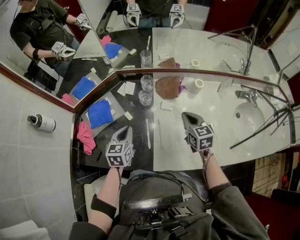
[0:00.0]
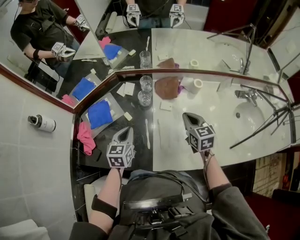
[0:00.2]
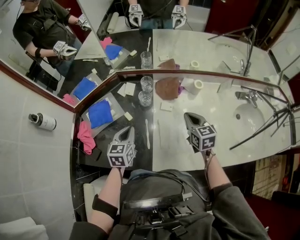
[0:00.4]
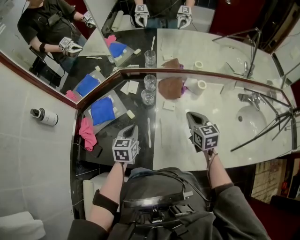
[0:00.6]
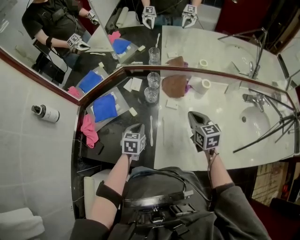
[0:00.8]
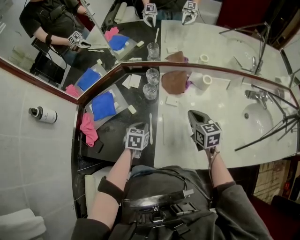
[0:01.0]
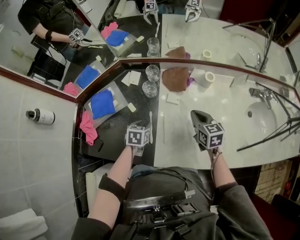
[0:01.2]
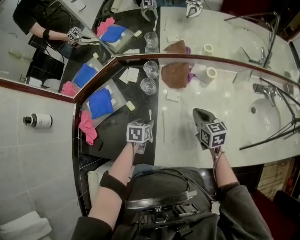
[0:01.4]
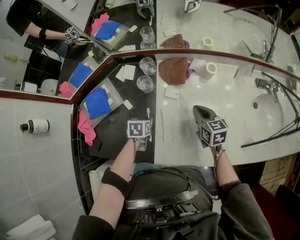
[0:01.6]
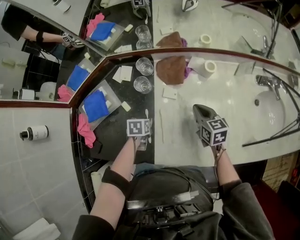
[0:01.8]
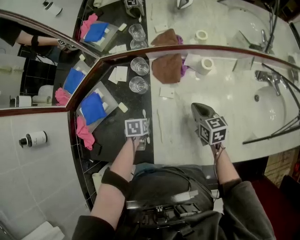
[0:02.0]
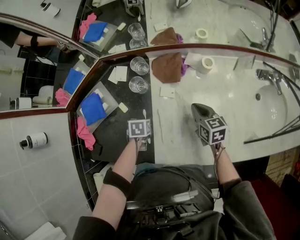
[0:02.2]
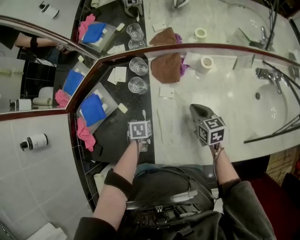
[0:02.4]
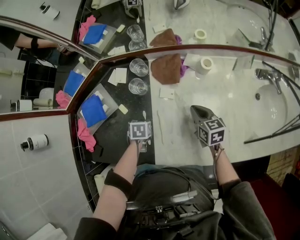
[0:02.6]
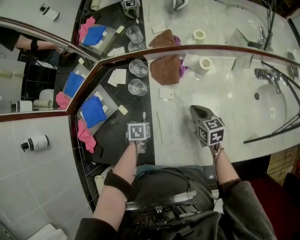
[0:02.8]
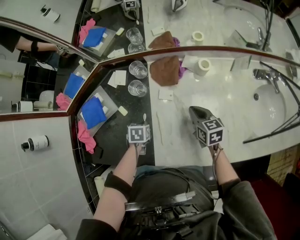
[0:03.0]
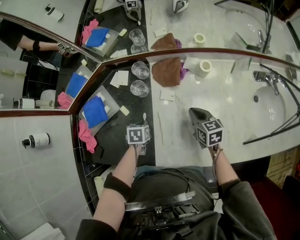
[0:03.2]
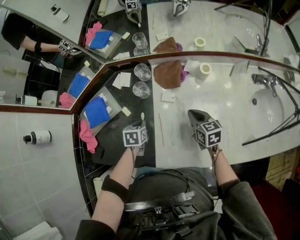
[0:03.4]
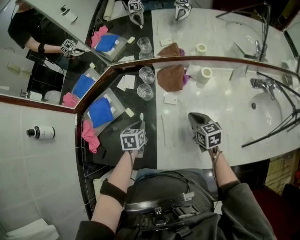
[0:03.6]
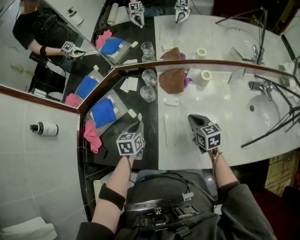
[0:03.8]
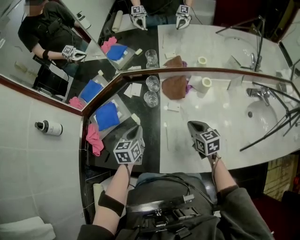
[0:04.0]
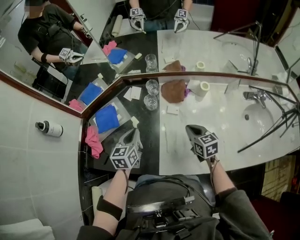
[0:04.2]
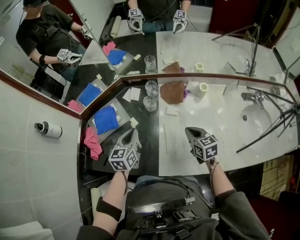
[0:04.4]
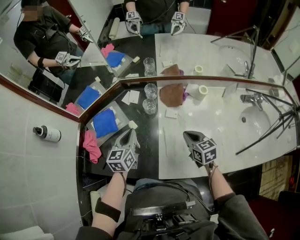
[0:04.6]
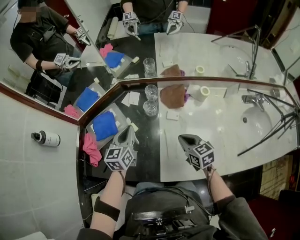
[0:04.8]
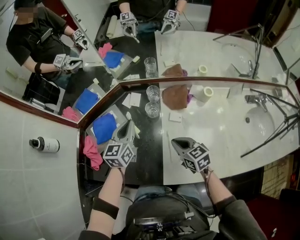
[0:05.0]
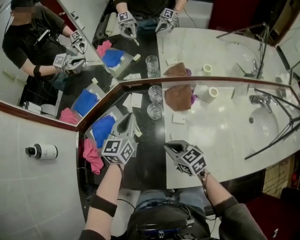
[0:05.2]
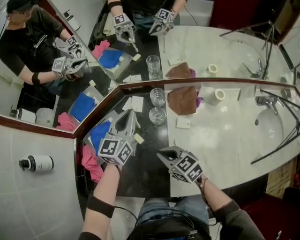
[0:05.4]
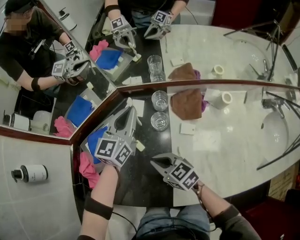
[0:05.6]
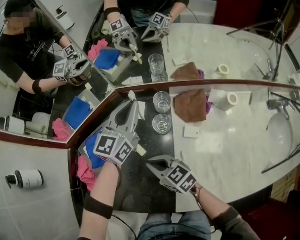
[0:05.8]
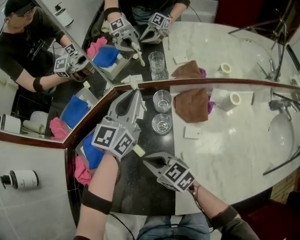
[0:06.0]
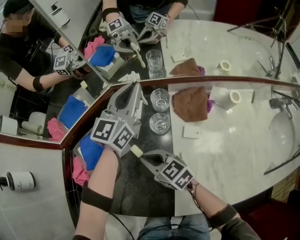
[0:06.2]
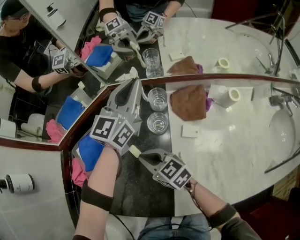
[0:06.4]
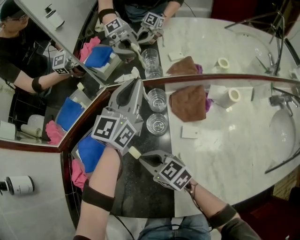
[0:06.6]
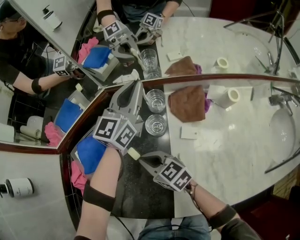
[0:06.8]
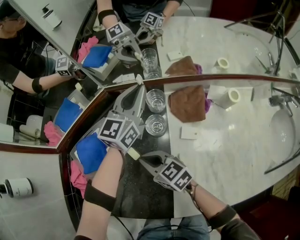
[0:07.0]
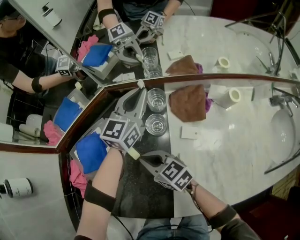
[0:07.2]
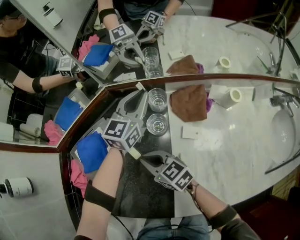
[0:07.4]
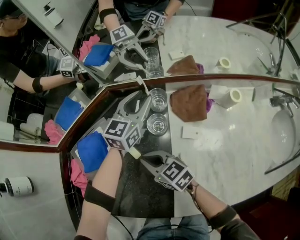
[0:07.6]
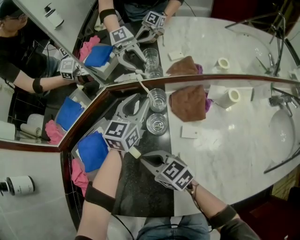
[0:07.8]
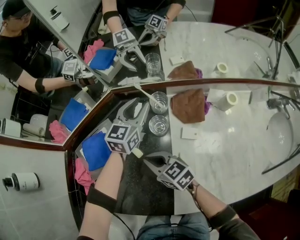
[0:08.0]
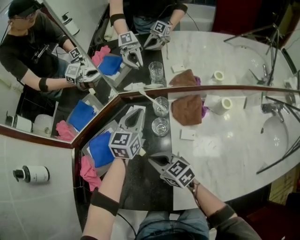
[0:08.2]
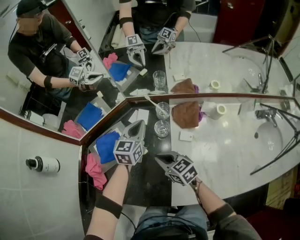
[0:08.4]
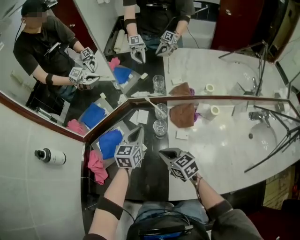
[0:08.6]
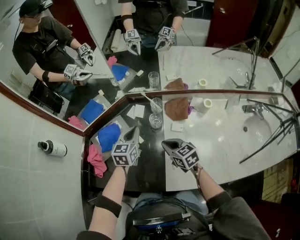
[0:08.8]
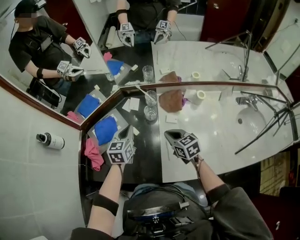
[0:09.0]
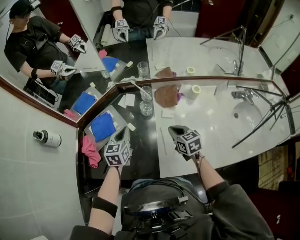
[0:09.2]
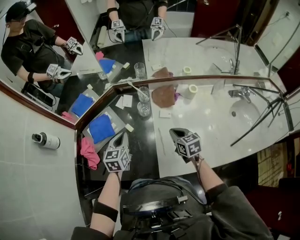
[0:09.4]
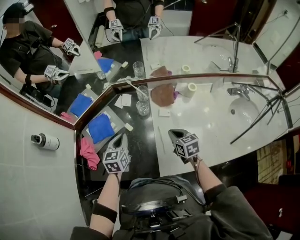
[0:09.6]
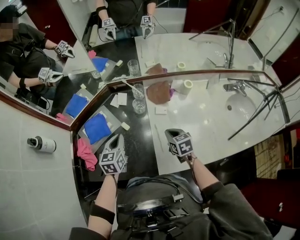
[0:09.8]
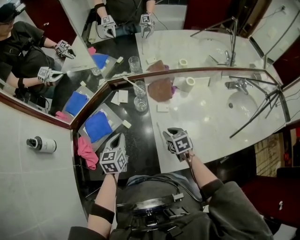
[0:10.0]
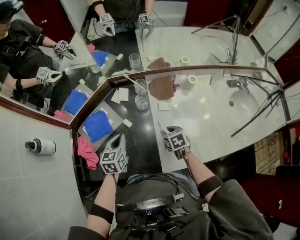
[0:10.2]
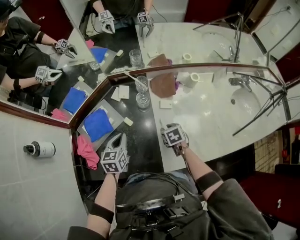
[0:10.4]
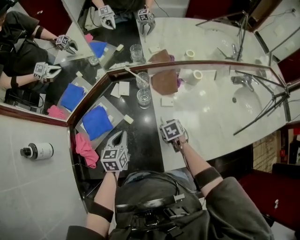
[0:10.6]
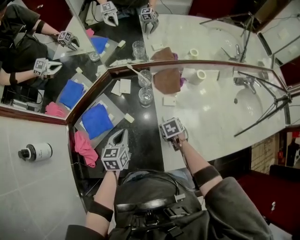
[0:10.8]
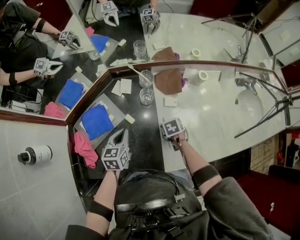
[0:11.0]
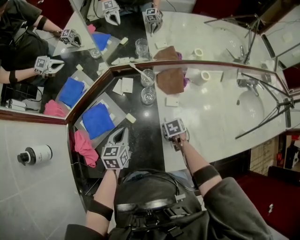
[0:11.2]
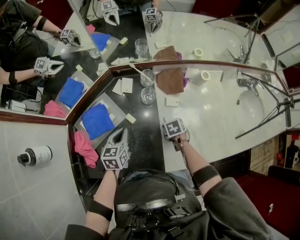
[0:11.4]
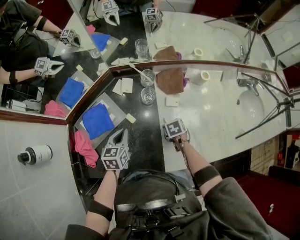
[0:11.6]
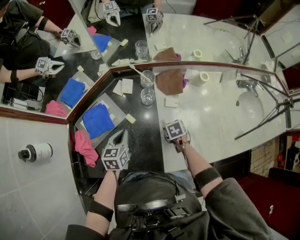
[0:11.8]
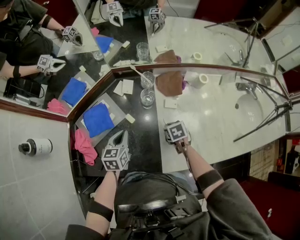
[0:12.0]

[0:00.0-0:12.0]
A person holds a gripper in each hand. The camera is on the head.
0:00.0 to 0:01.6: The left gripper is displaced downward by about 20 cm, points its fingers roughly 40 degrees further downward, and opens. The right gripper shifts roughly 10 cm downward.
0:01.6 to 0:03.0: The left gripper closes up.
0:03.0 to 0:04.4: The left gripper moves upward, some 20 cm, and angles its fingers upward, by roughly 50 degrees. The right gripper changes place by some 10 cm.
0:04.4 to 0:06.0: The left gripper travels forward by roughly 25 cm, and changes its angle by approximately 30 degrees, while the right gripper travels to the left and forward by approximately 30 cm, and rotates about 30 degrees.
0:06.0 to 0:07.6: The left gripper travels downward by about 10 cm, and opens.
0:07.6 to 0:09.0: The right gripper moves to the right, upward and backward, about 20 cm, and rotates roughly 20 degrees, while the left gripper travels backward, to the left and upward by approximately 25 cm, turns by approximately 20 degrees, and closes its fingers.
0:09.0 to 0:10.4: The right gripper goes some 10 cm downward, turns by approximately 30 degrees, and opens its fingers, while the left gripper heads downward and backward, covering some 10 cm.
0:10.4 to 0:12.0: The right gripper closes its fingers.

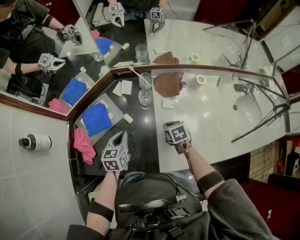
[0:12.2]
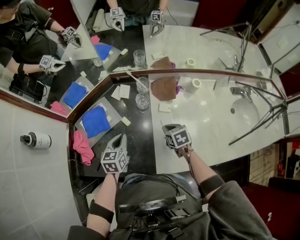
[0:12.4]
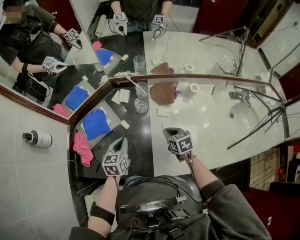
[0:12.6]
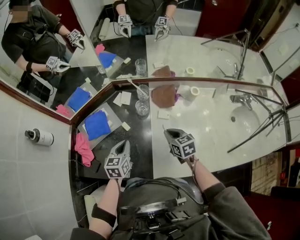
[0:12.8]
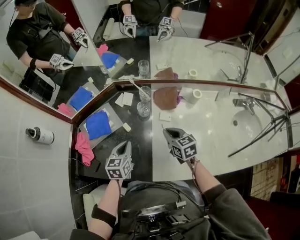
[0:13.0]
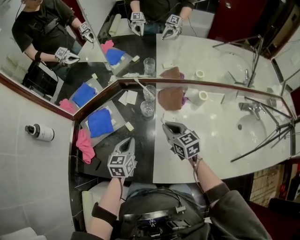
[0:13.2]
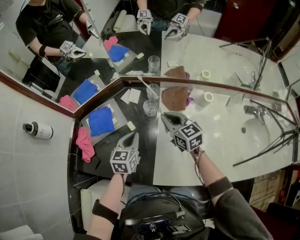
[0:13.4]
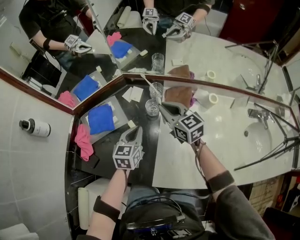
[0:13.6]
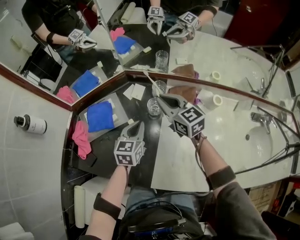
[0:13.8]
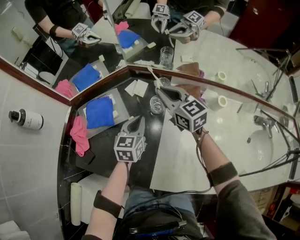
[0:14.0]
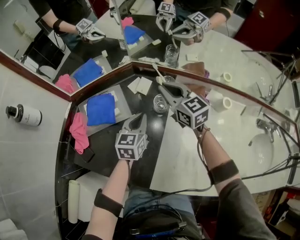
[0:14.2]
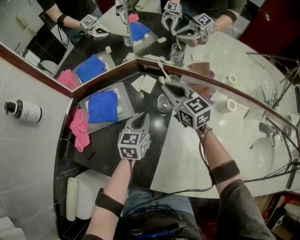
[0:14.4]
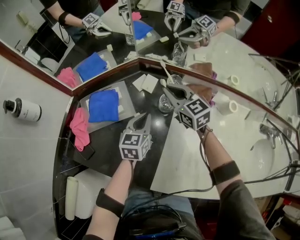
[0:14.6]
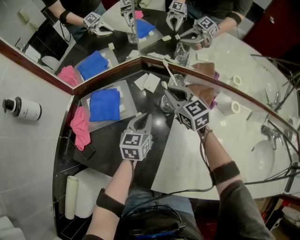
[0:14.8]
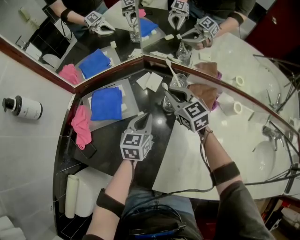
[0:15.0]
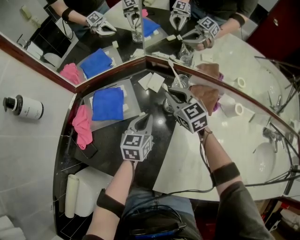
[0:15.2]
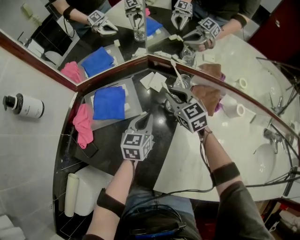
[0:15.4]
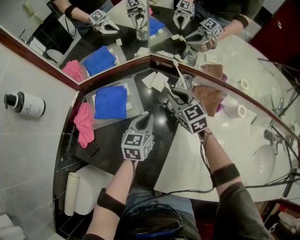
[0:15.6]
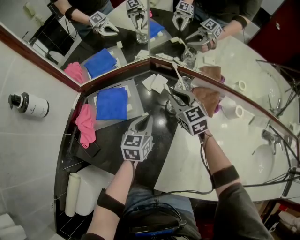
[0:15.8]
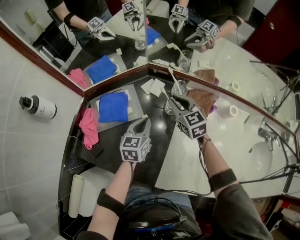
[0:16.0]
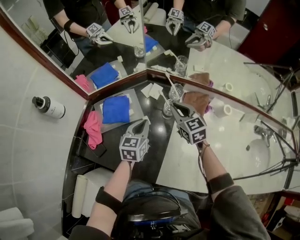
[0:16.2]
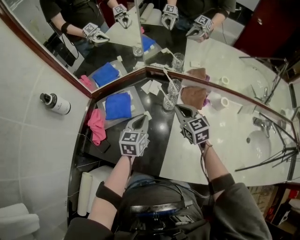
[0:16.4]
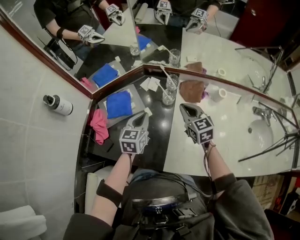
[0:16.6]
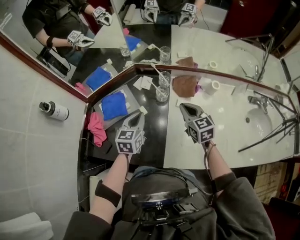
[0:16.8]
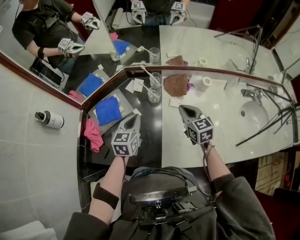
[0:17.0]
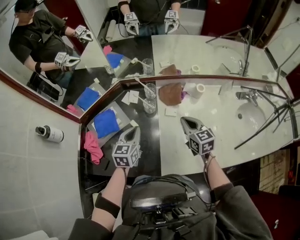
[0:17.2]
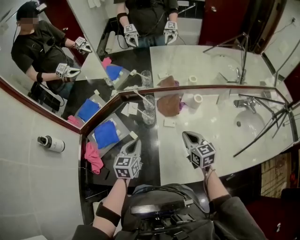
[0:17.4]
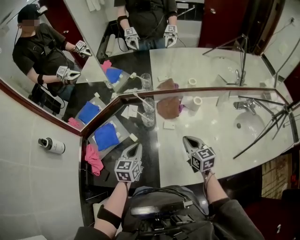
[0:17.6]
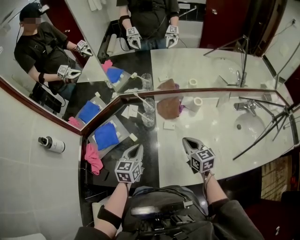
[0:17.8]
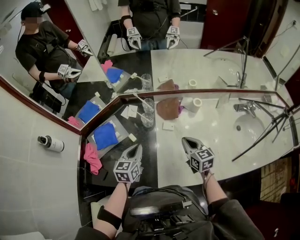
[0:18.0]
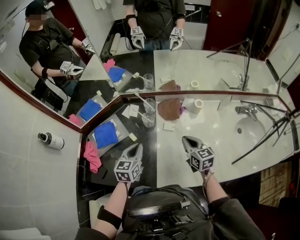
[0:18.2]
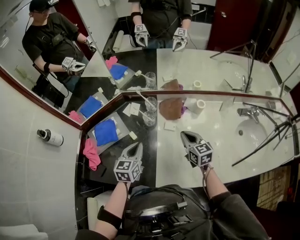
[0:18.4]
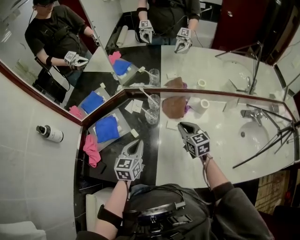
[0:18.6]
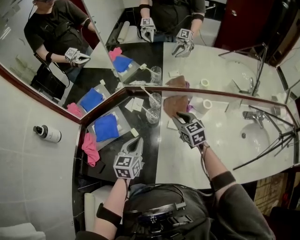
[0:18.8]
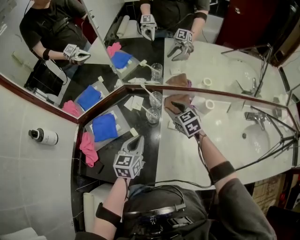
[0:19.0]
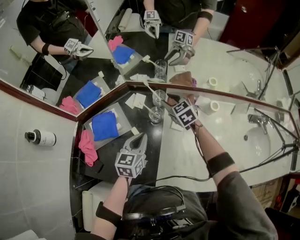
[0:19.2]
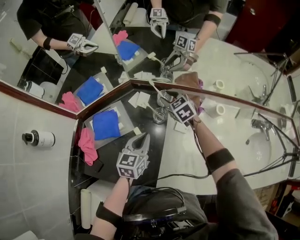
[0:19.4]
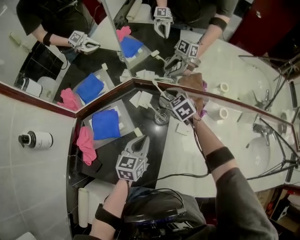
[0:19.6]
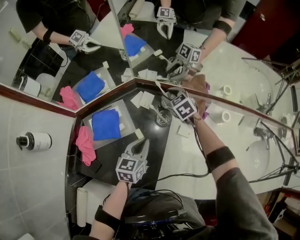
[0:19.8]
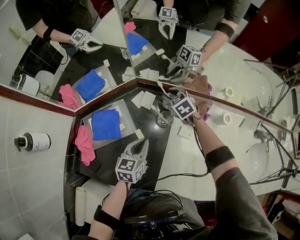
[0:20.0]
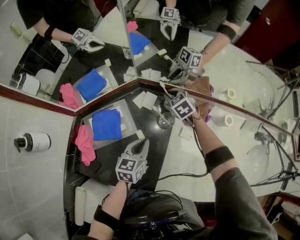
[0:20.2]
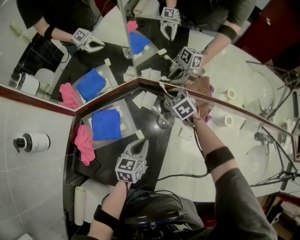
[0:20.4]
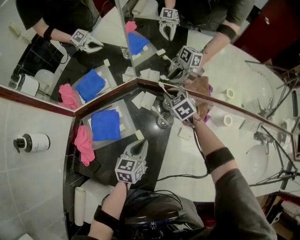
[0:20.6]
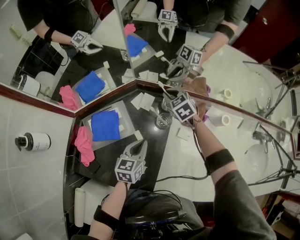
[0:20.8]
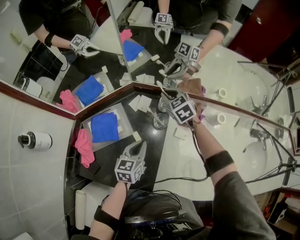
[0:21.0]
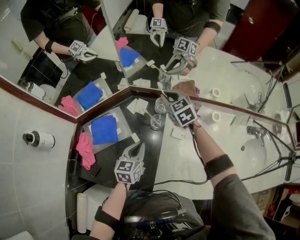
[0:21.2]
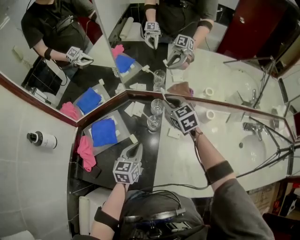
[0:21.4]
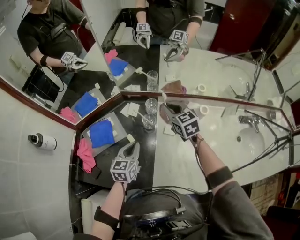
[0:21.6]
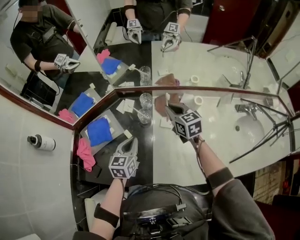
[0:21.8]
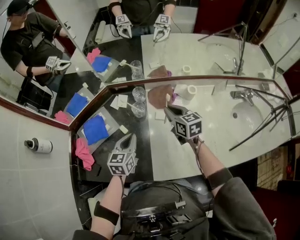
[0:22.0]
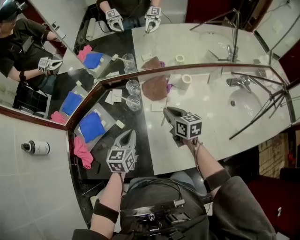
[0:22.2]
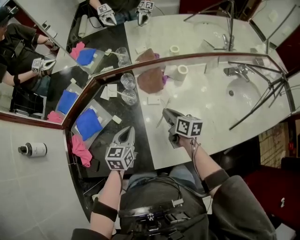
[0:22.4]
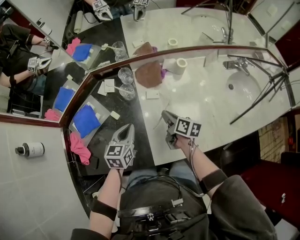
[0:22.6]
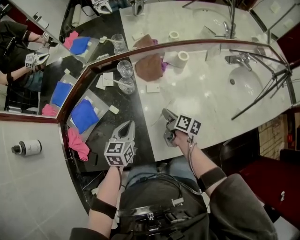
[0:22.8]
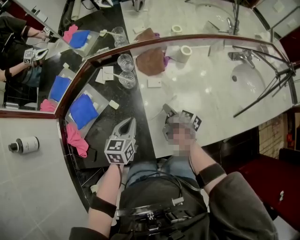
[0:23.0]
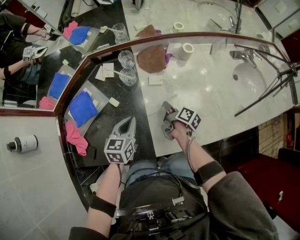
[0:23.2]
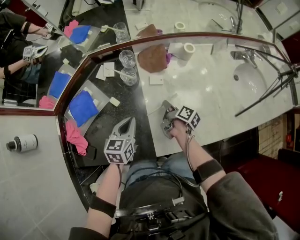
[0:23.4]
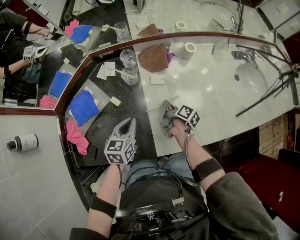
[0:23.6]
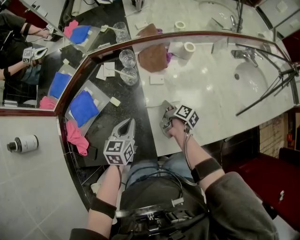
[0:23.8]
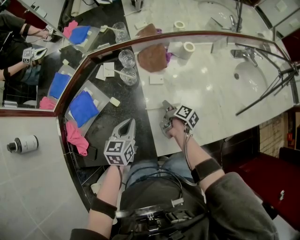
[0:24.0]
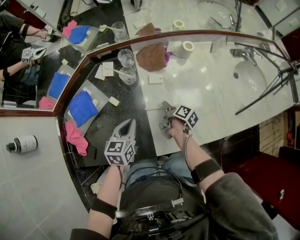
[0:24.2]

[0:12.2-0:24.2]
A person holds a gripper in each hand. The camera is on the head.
0:12.2 to 0:13.8: The right gripper heads upward and forward, covering some 25 cm, and points its fingers roughly 50 degrees further upward; the left gripper travels to the right and forward by approximately 10 cm.
0:13.8 to 0:15.2: The left gripper is displaced downward by approximately 5 cm. Meanwhile the right gripper heads downward and forward, covering about 10 cm.
0:15.2 to 0:16.6: The right gripper is displaced backward and upward by about 15 cm, while the left gripper goes approximately 10 cm upward and backward.
0:16.6 to 0:18.2: The left gripper travels to the right by some 5 cm. Meanwhile the right gripper heads to the right and backward, covering roughly 15 cm.
0:18.2 to 0:19.8: The right gripper shifts some 35 cm forward and to the left, rotates roughly 40 degrees, and opens its fingers. The left gripper shifts roughly 10 cm forward and downward.
0:19.8 to 0:21.2: The right gripper goes some 10 cm upward, and closes.
0:21.2 to 0:22.6: The left gripper moves backward and to the right, roughly 10 cm. Meanwhile the right gripper heads backward and to the right, covering some 30 cm, and twists some 70 degrees clockwise, seen from behind.
0:22.6 to 0:24.2: The left gripper shifts by roughly 5 cm, while the right gripper shifts about 10 cm downward, and turns by roughly 30 degrees.
